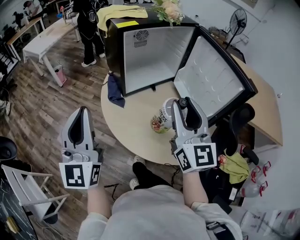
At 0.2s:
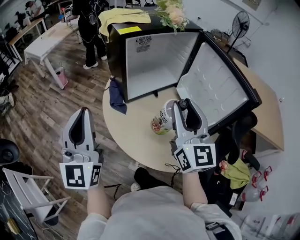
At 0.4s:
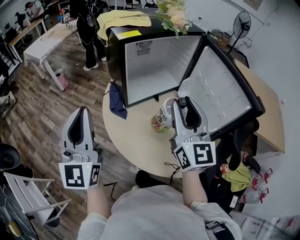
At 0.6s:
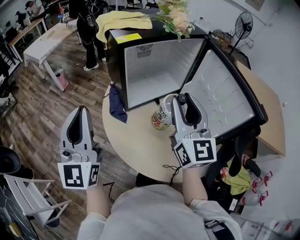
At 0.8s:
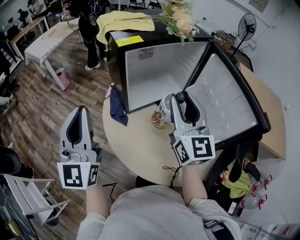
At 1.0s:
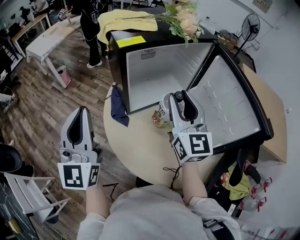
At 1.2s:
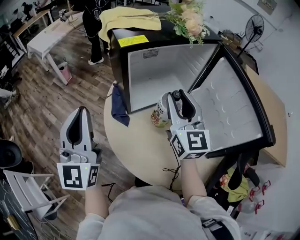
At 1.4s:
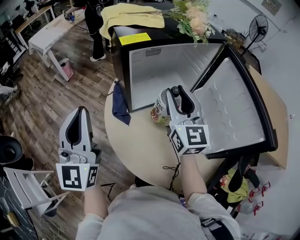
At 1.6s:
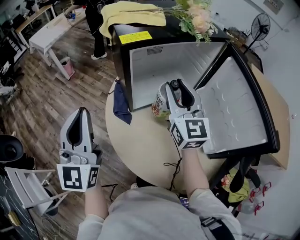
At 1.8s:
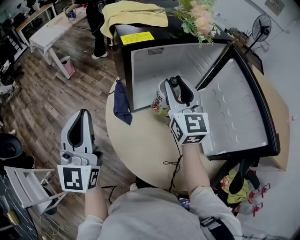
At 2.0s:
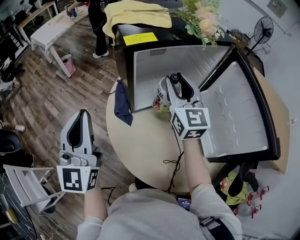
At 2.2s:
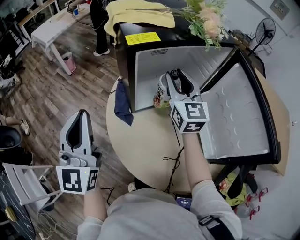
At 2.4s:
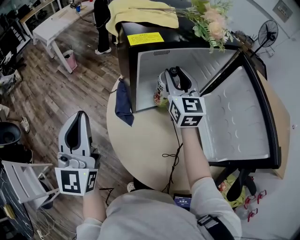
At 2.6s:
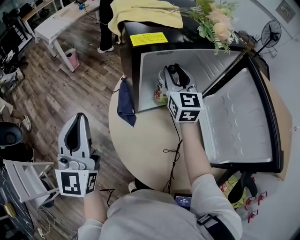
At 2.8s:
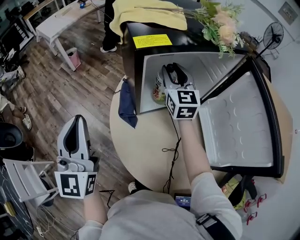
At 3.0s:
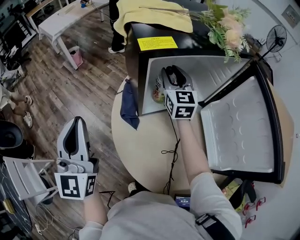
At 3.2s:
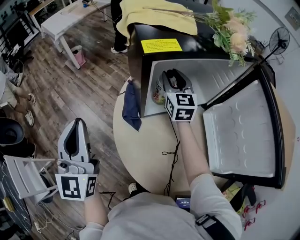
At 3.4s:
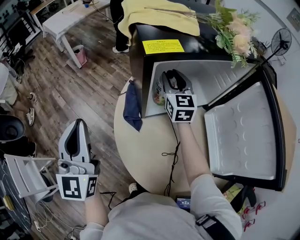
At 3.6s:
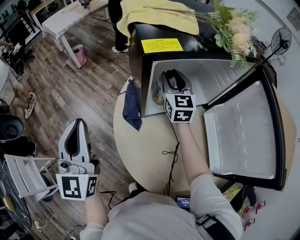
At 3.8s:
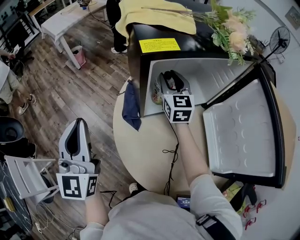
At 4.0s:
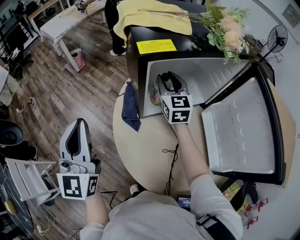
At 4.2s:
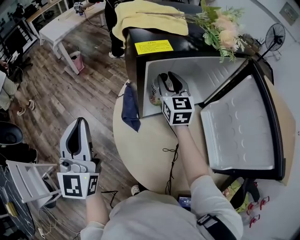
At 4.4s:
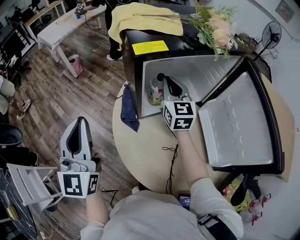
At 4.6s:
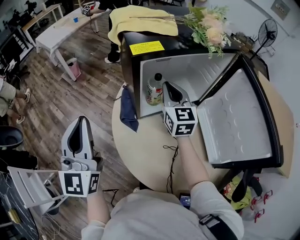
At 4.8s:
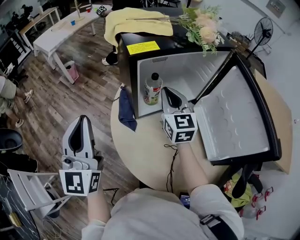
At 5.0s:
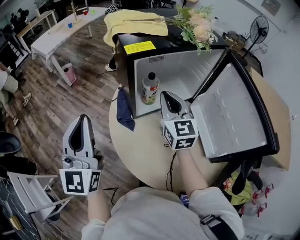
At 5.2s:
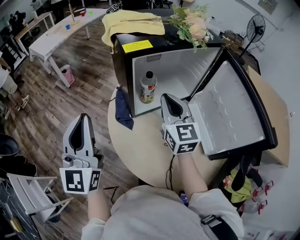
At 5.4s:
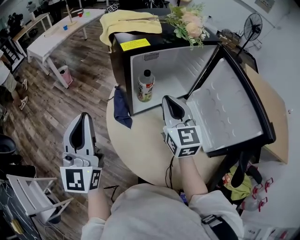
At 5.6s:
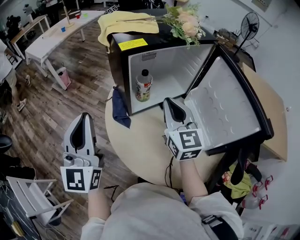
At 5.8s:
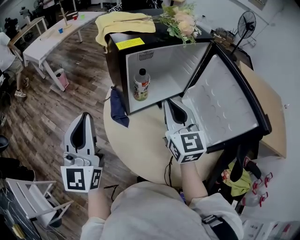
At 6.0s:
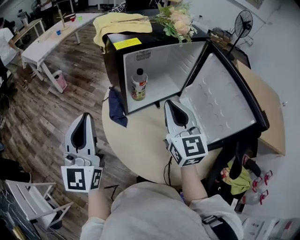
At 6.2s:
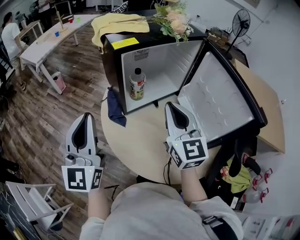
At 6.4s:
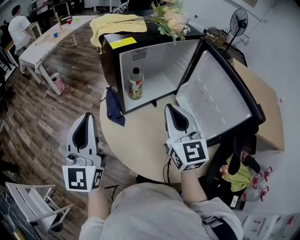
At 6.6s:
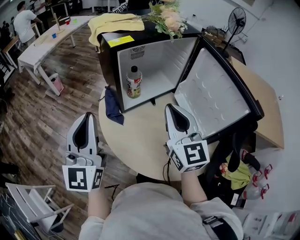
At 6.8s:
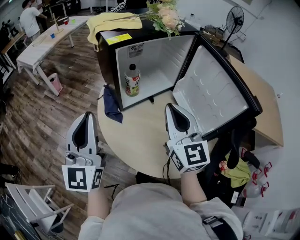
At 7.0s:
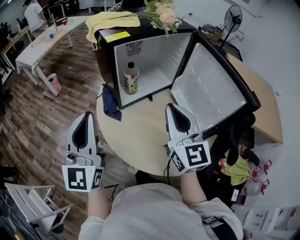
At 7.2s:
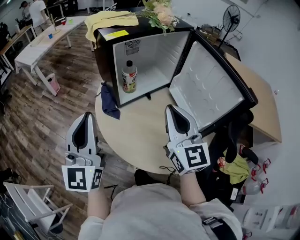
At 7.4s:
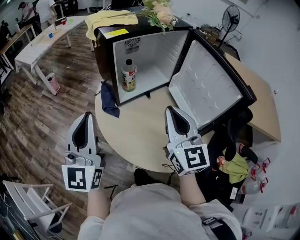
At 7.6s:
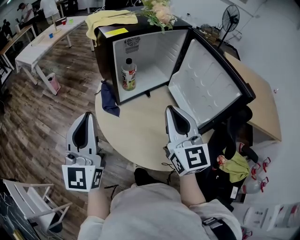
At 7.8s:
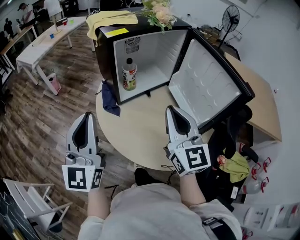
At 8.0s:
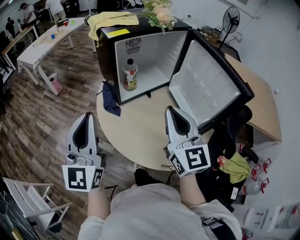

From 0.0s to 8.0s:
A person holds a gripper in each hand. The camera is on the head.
From 0.0s to 1.6s: The left gripper heads forward, covering approximately 15 cm; the right gripper is displaced forward by about 25 cm.
From 1.6s to 3.2s: The left gripper shifts by approximately 5 cm. Meanwhile the right gripper heads forward and downward, covering some 20 cm.
From 3.2s to 4.8s: The right gripper moves backward, roughly 10 cm, and closes its fingers.
From 4.8s to 6.4s: The right gripper goes roughly 20 cm backward. The left gripper shifts by approximately 5 cm.
From 6.4s to 8.0s: Both grippers travel together backward, roughly 10 cm.

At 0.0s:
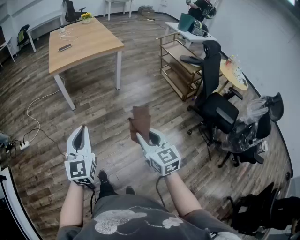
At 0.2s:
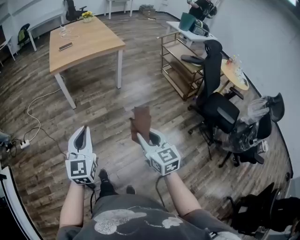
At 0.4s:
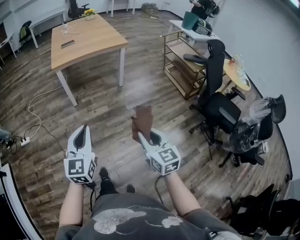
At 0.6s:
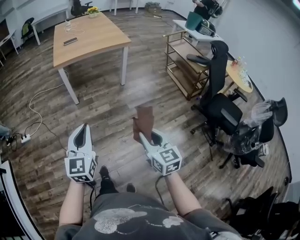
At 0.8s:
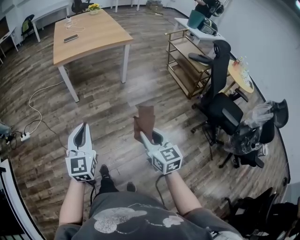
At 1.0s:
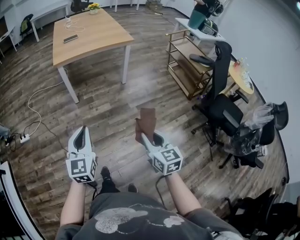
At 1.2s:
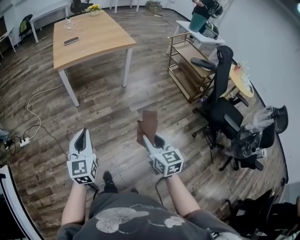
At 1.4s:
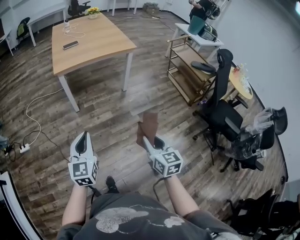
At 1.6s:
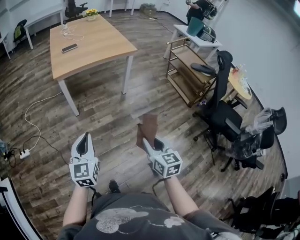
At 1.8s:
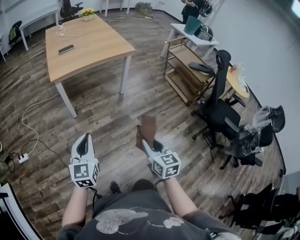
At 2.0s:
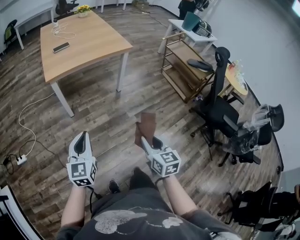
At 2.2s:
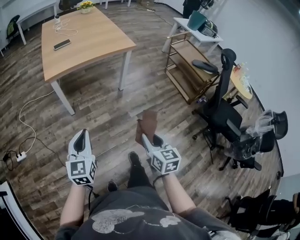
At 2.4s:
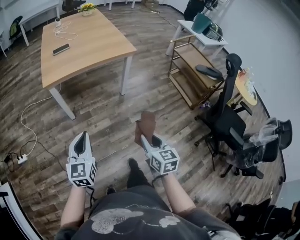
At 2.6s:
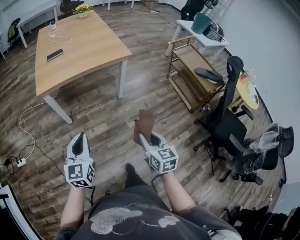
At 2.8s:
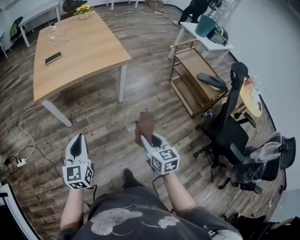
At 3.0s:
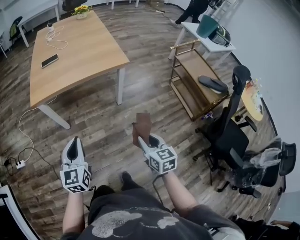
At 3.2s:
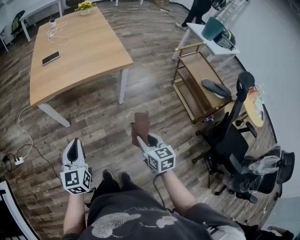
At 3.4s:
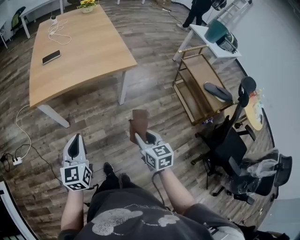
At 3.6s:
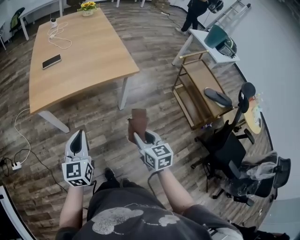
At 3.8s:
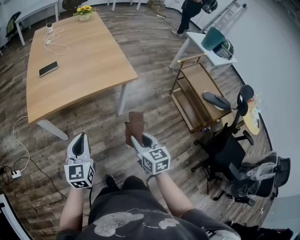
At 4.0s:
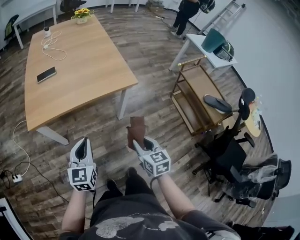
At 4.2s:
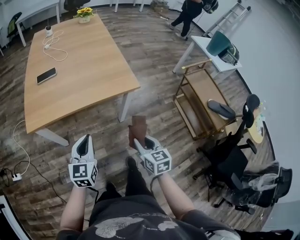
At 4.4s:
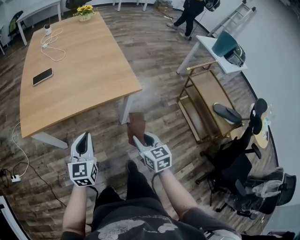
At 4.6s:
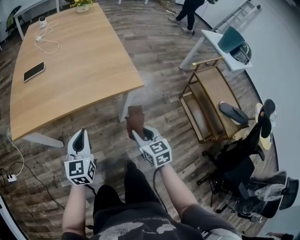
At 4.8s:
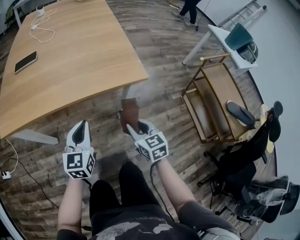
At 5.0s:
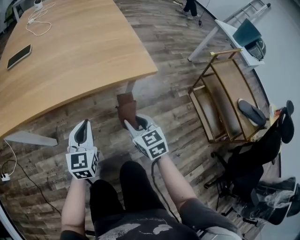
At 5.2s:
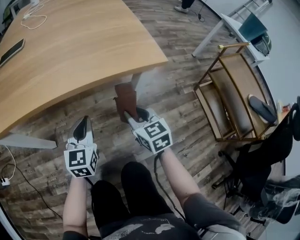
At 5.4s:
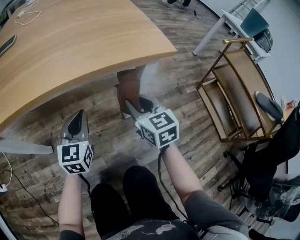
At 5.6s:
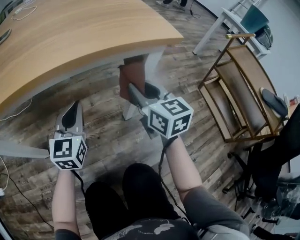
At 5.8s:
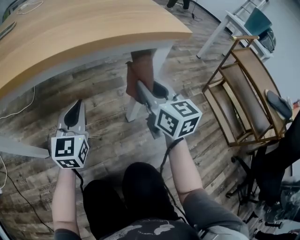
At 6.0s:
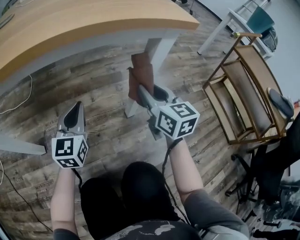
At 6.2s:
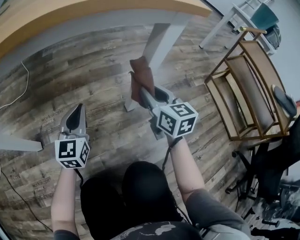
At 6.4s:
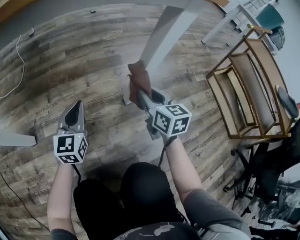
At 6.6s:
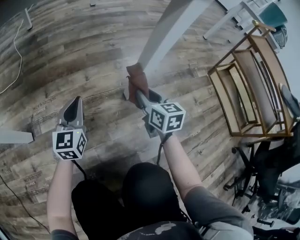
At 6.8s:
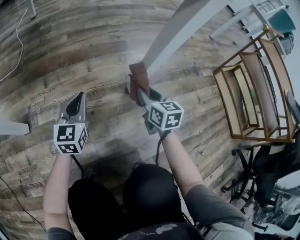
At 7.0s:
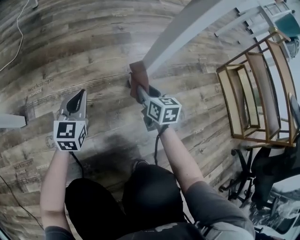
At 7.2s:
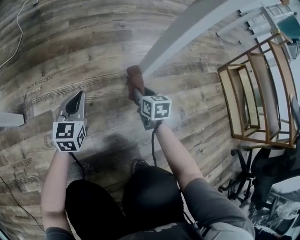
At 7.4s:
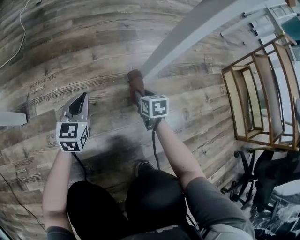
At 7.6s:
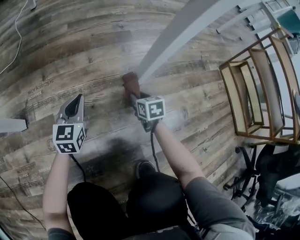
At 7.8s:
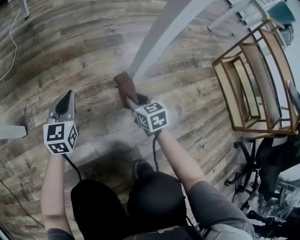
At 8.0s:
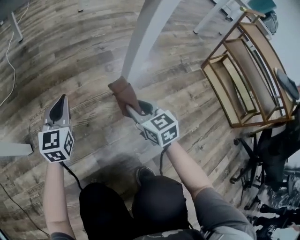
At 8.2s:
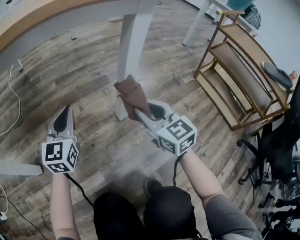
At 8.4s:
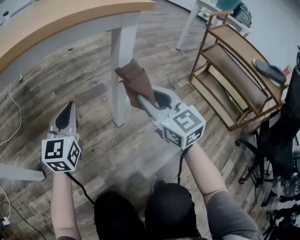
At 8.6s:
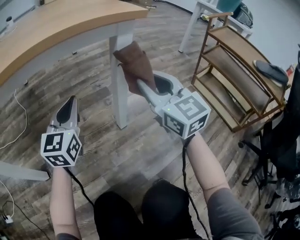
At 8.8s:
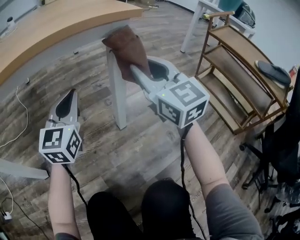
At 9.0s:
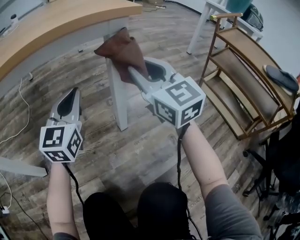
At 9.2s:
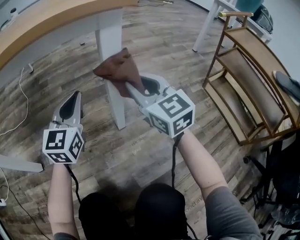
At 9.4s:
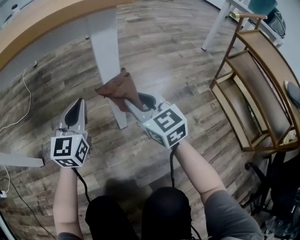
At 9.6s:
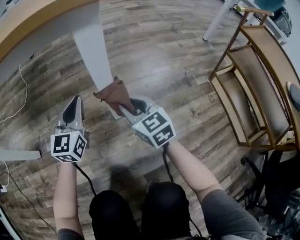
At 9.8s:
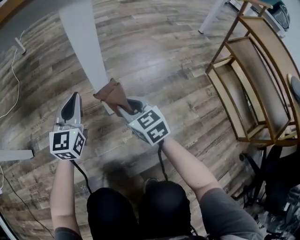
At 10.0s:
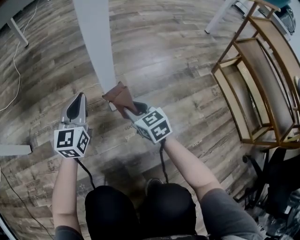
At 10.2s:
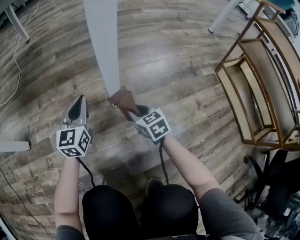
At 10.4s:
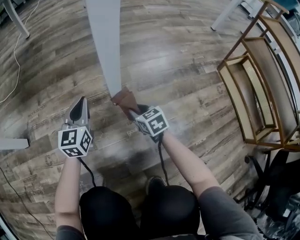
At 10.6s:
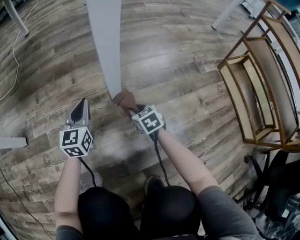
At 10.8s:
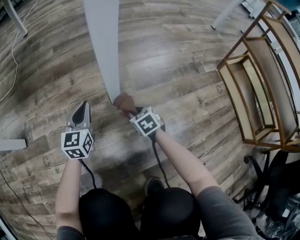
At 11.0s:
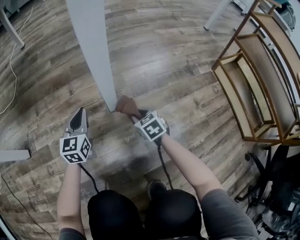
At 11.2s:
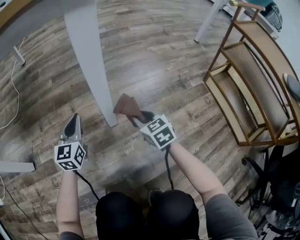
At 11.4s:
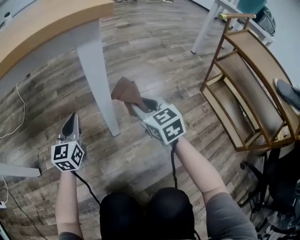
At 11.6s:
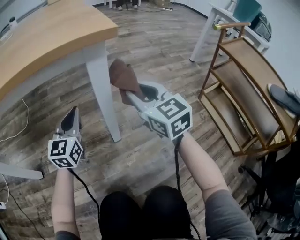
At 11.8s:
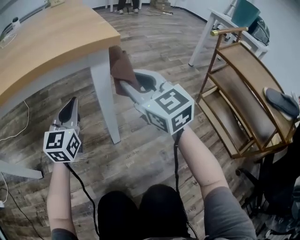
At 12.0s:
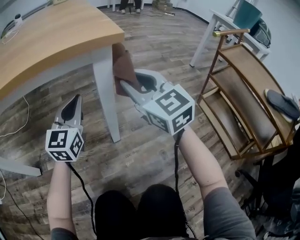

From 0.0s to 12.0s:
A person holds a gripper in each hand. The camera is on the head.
From 0.0s to 1.6s: Both grippers travel together forward, to the left and downward, roughly 20 cm.
From 1.6s to 3.0s: The two grippers go about 30 cm forward and to the right.
From 3.0s to 4.4s: Both grippers travel together forward, approximately 25 cm.
From 4.4s to 6.0s: The grippers both shift downward and forward by approximately 35 cm.
From 6.0s to 7.6s: The right gripper moves downward, approximately 40 cm, and tips its fingers downward by some 40 degrees. Meanwhile the left gripper heads downward, covering some 25 cm.
From 7.6s to 9.0s: The two grippers go approximately 40 cm upward. The right gripper tips its fingers upward by approximately 50 degrees. The left gripper changes its angle by some 30 degrees.
From 9.0s to 10.4s: The left gripper shifts approximately 30 cm downward, and turns by roughly 20 degrees. Meanwhile the right gripper moves downward, approximately 50 cm, and tilts its fingers approximately 40 degrees downward.
From 10.4s to 12.0s: The right gripper goes some 50 cm upward, and points its fingers approximately 40 degrees further upward. Meanwhile the left gripper heads upward, covering approximately 30 cm.

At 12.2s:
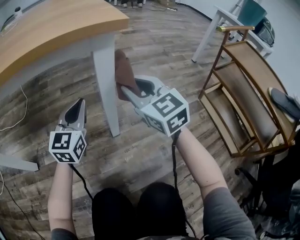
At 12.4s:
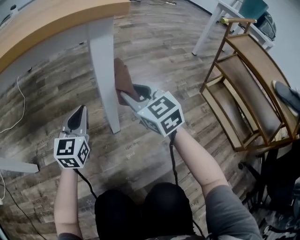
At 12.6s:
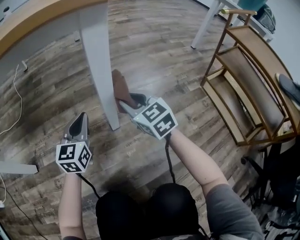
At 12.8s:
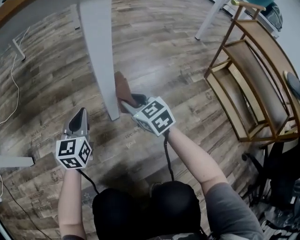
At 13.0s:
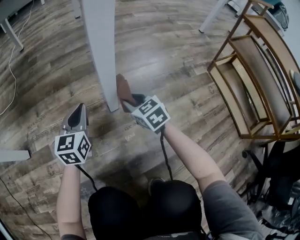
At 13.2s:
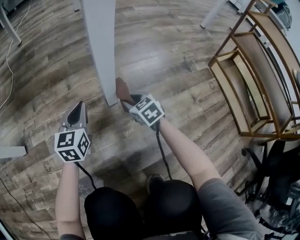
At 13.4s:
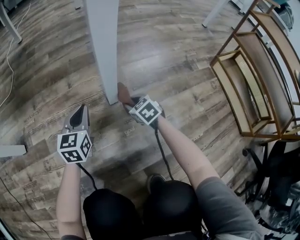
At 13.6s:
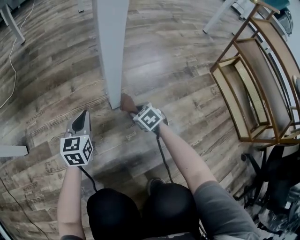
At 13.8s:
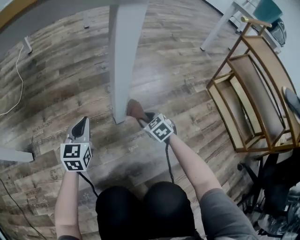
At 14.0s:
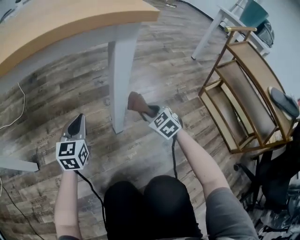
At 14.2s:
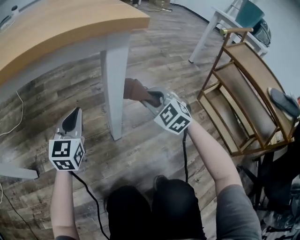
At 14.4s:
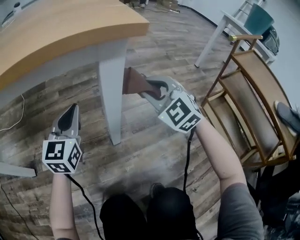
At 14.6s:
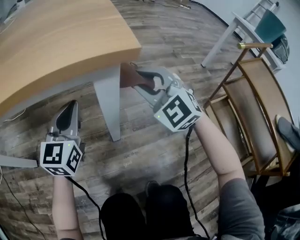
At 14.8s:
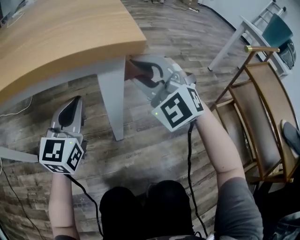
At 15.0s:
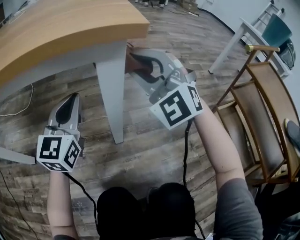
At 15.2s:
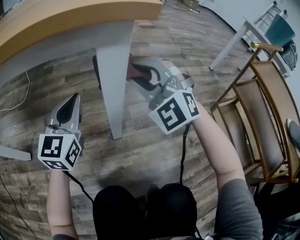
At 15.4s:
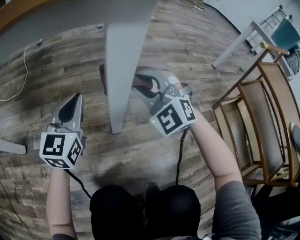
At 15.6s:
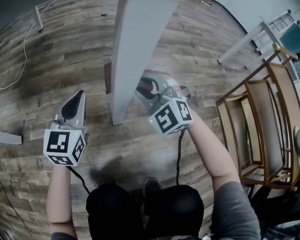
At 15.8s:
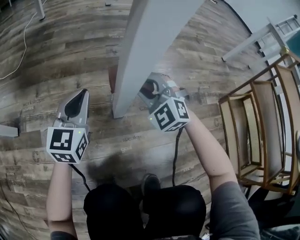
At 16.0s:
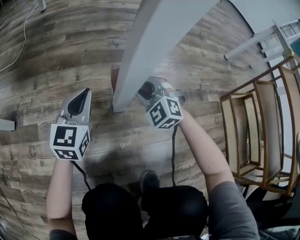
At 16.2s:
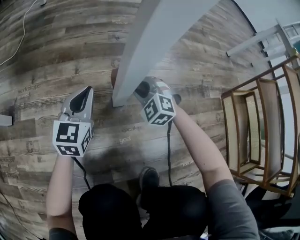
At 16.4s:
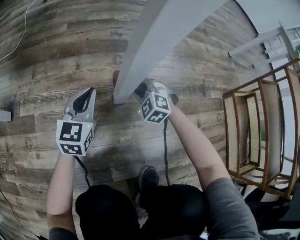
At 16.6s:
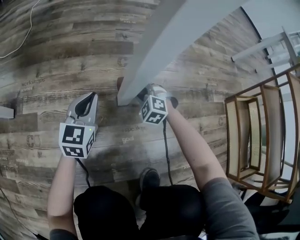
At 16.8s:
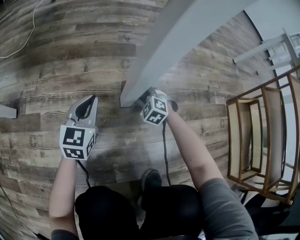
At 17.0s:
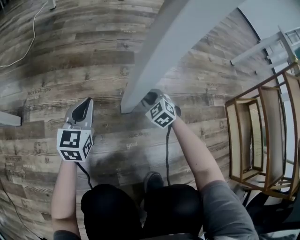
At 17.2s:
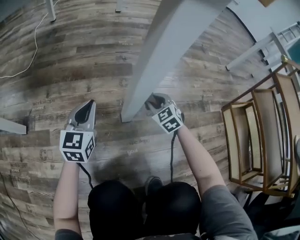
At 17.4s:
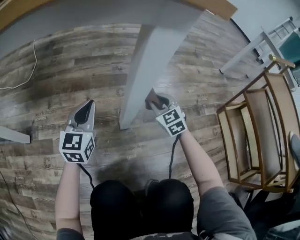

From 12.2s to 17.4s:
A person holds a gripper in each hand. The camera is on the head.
From 12.2s to 14.0s: The left gripper goes roughly 10 cm downward and to the left. The right gripper moves downward, about 25 cm, and turns by roughly 30 degrees.
From 14.0s to 15.6s: The right gripper shifts approximately 10 cm to the left and forward, goes upward and returns, approximately 30 cm each way, and swivels approximately 50 degrees. The left gripper moves approximately 15 cm upward and comes back.
From 15.6s to 17.4s: The right gripper shifts some 5 cm to the right, goes downward and returns, roughly 30 cm each way, and rotates approximately 40 degrees; the left gripper reaches some 15 cm downward, then returns.
